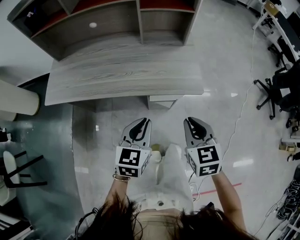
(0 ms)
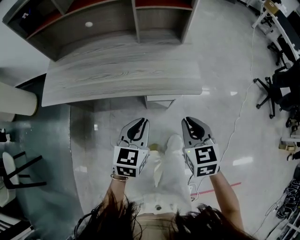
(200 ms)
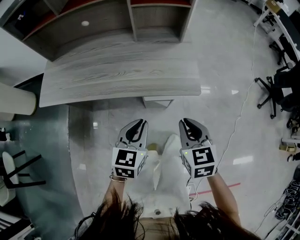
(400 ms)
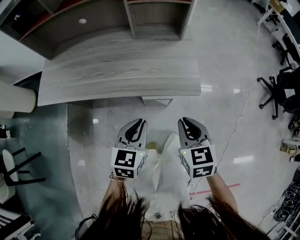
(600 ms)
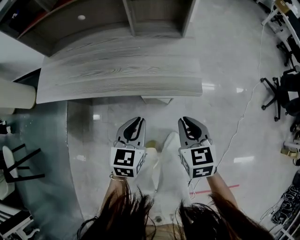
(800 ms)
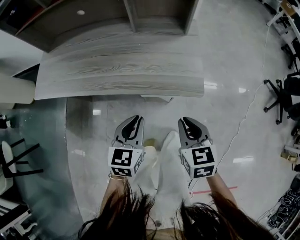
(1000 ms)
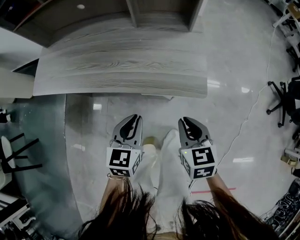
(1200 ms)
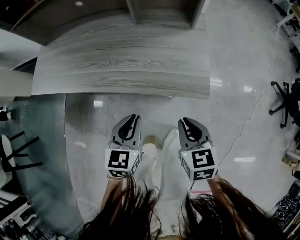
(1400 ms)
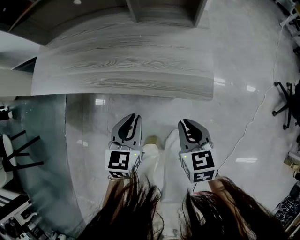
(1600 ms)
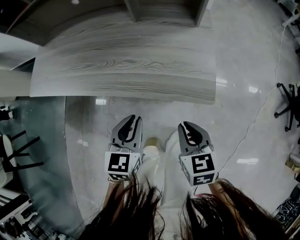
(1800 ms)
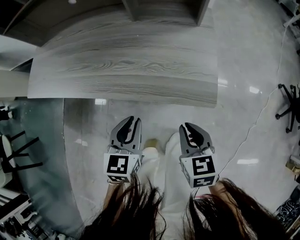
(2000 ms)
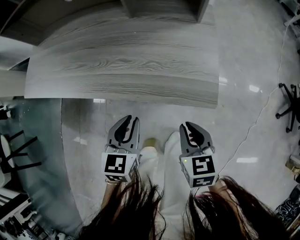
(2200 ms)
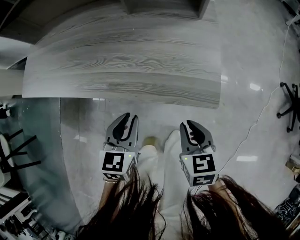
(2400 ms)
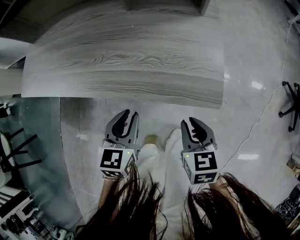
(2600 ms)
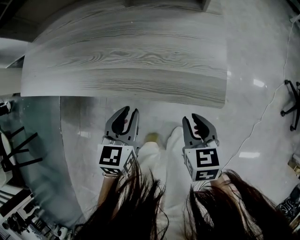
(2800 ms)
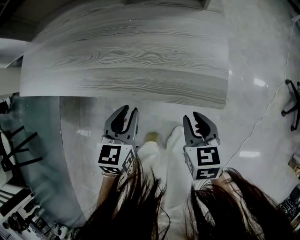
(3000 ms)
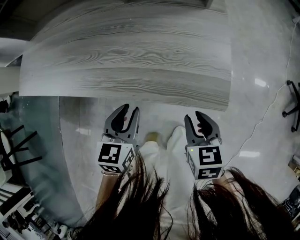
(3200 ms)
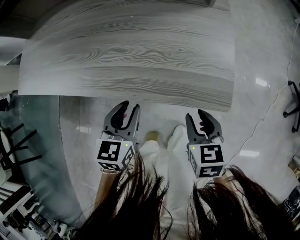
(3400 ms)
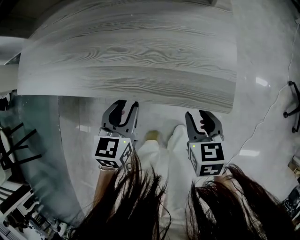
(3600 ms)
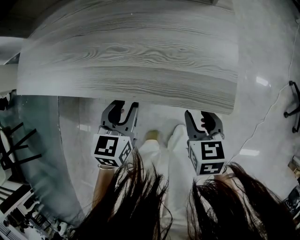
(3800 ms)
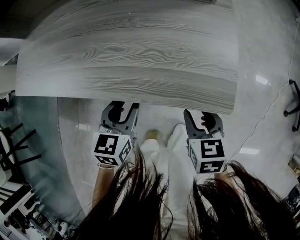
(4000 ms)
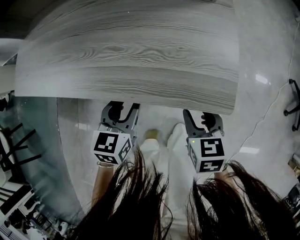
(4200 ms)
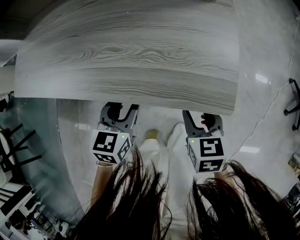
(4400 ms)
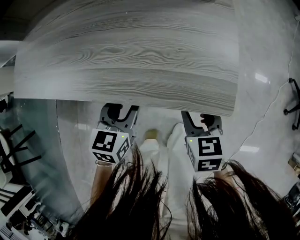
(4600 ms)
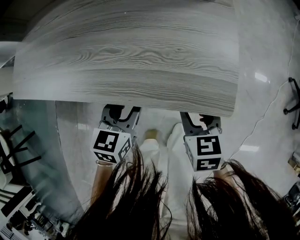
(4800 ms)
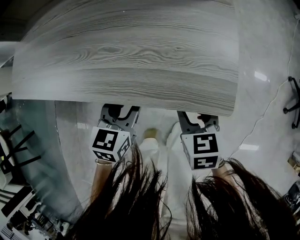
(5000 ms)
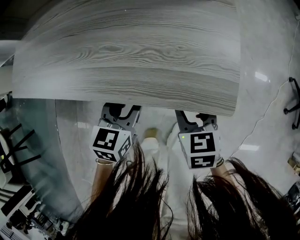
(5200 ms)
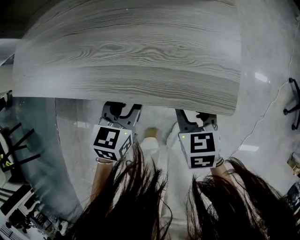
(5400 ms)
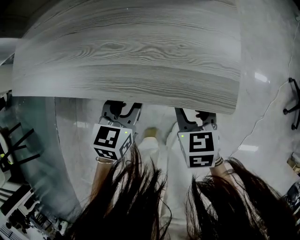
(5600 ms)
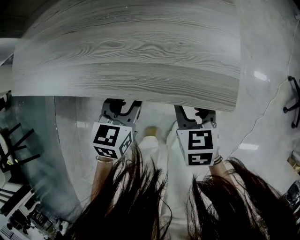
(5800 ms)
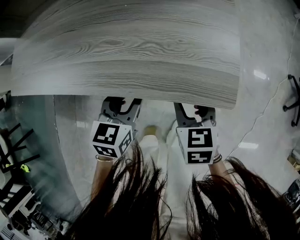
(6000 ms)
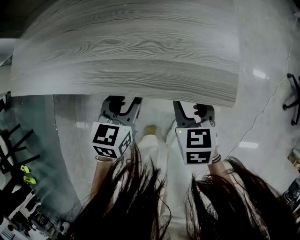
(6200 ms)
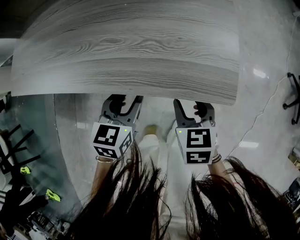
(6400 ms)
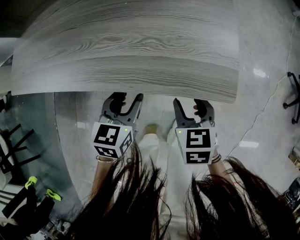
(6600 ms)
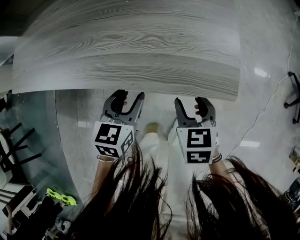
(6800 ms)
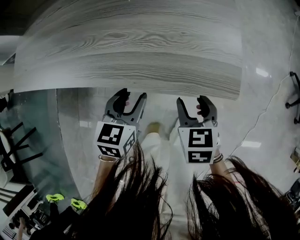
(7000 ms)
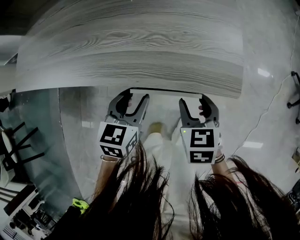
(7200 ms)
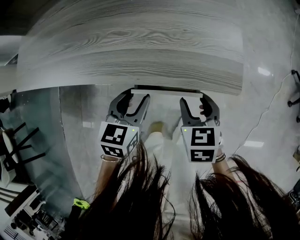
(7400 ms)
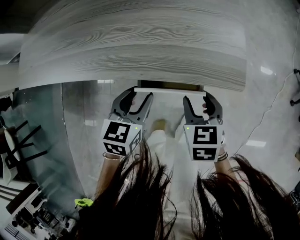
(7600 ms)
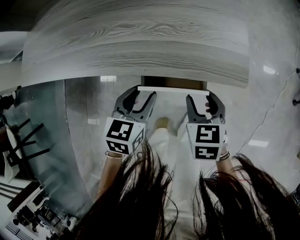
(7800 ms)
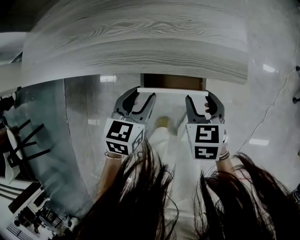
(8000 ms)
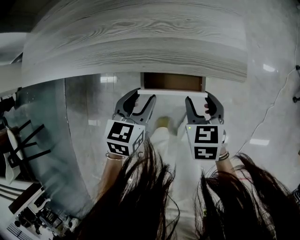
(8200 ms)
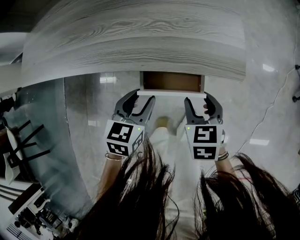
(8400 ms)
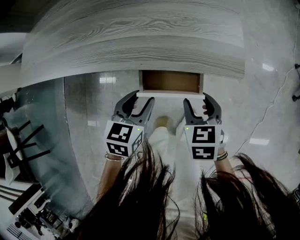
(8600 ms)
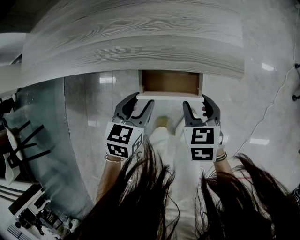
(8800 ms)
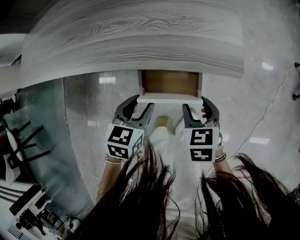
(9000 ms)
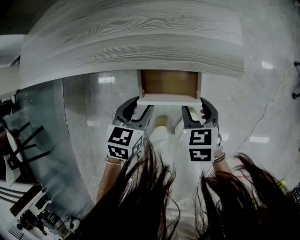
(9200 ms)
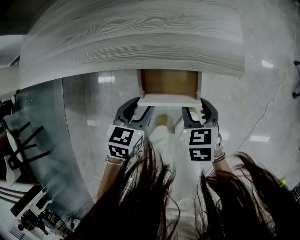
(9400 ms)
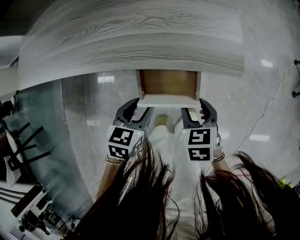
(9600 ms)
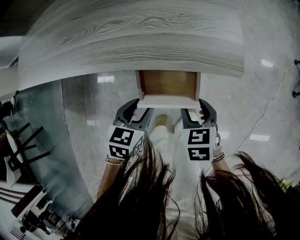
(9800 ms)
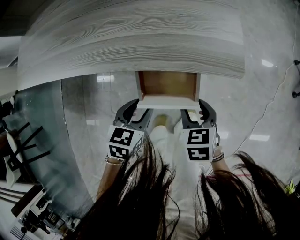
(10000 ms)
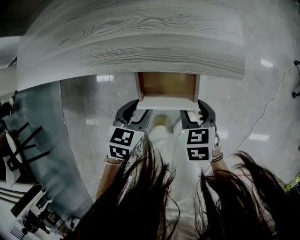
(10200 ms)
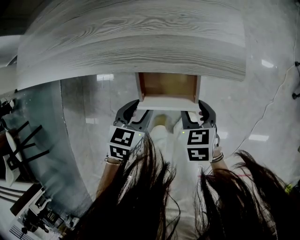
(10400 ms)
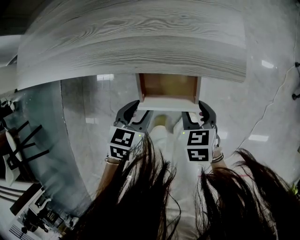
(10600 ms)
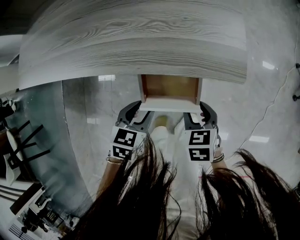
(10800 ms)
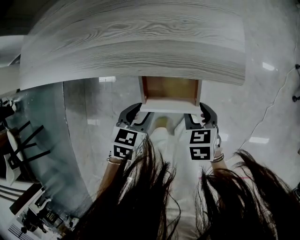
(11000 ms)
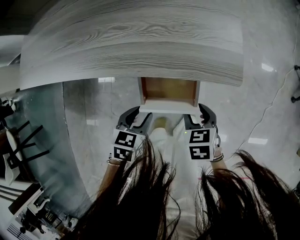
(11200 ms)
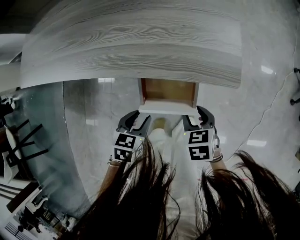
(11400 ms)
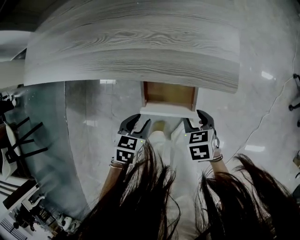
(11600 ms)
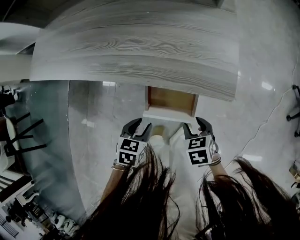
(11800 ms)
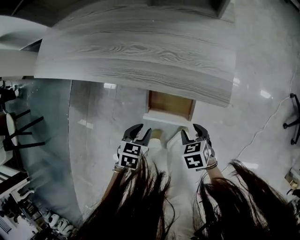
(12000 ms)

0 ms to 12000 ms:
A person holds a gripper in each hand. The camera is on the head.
0 ms to 1600 ms: Both grippers travel together downward and forward, approximately 15 cm.
1600 ms to 3000 ms: Both grippers move downward, some 10 cm.
3000 ms to 4400 ms: The left gripper changes place by roughly 5 cm. The right gripper opens its fingers.
4400 ms to 7600 ms: The grippers make only small movements.
7600 ms to 9000 ms: Both grippers move backward, some 5 cm.
9000 ms to 10400 ms: The grippers stay close to where they were, moving slightly.
10400 ms to 12000 ms: The grippers move only a little.

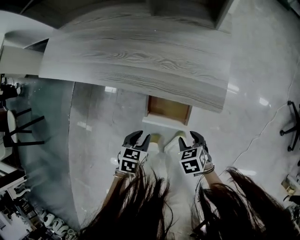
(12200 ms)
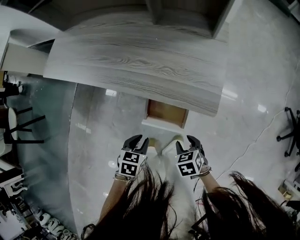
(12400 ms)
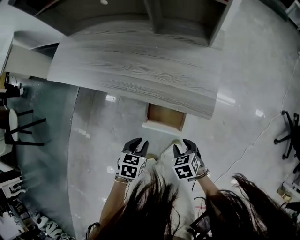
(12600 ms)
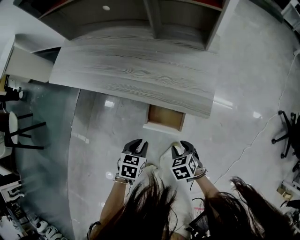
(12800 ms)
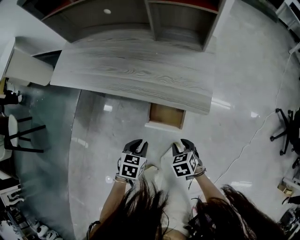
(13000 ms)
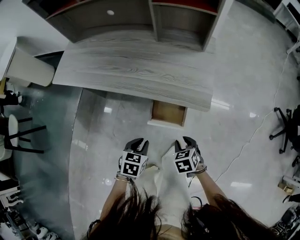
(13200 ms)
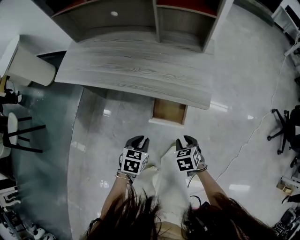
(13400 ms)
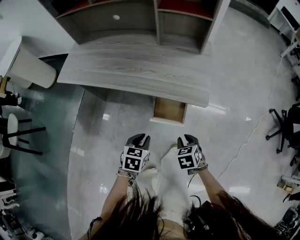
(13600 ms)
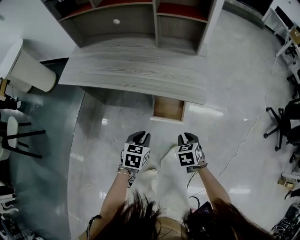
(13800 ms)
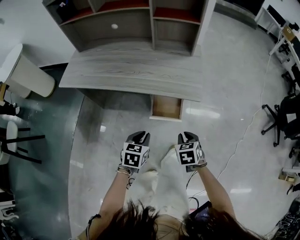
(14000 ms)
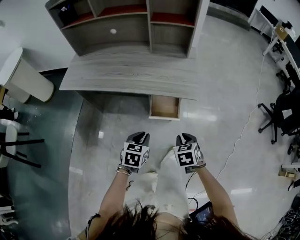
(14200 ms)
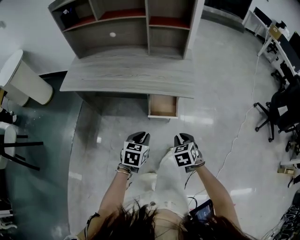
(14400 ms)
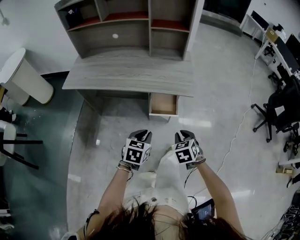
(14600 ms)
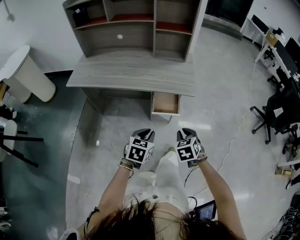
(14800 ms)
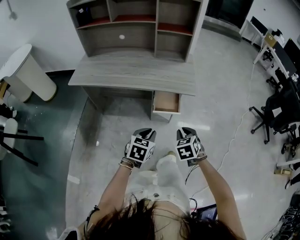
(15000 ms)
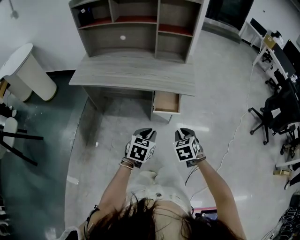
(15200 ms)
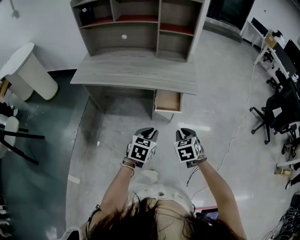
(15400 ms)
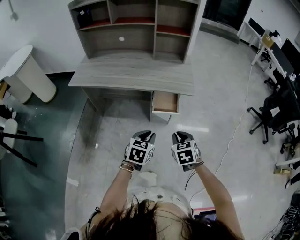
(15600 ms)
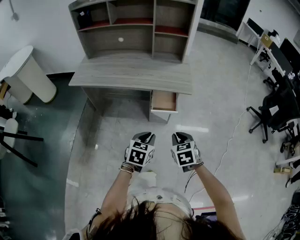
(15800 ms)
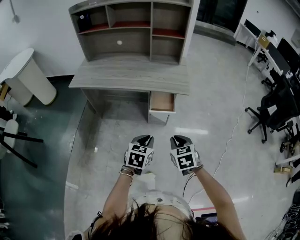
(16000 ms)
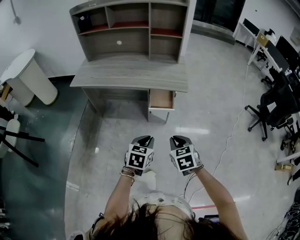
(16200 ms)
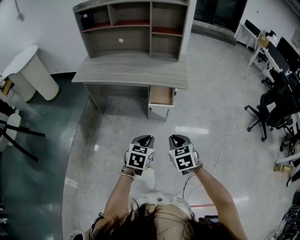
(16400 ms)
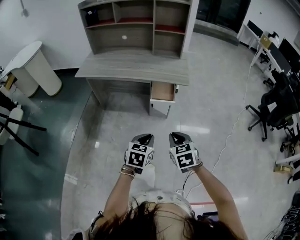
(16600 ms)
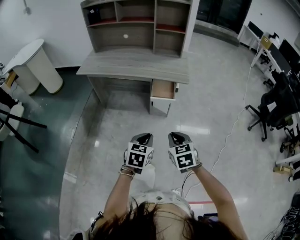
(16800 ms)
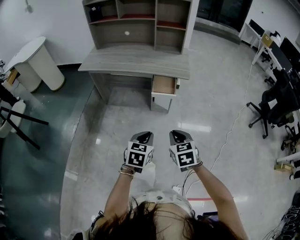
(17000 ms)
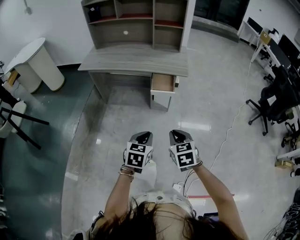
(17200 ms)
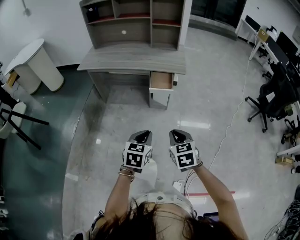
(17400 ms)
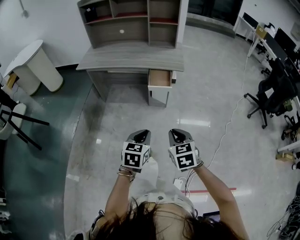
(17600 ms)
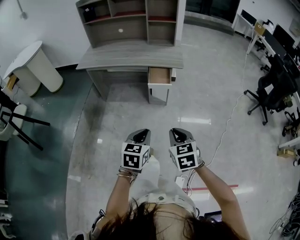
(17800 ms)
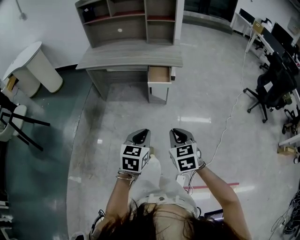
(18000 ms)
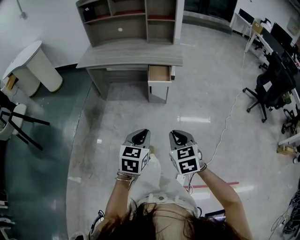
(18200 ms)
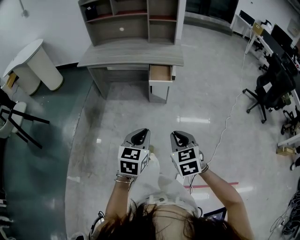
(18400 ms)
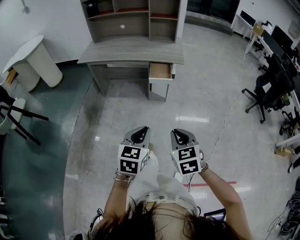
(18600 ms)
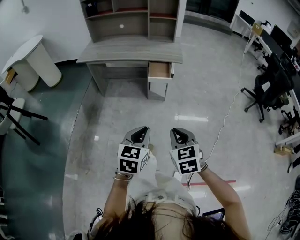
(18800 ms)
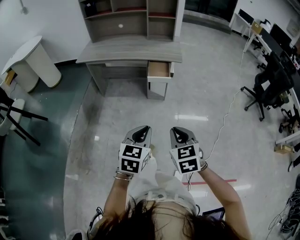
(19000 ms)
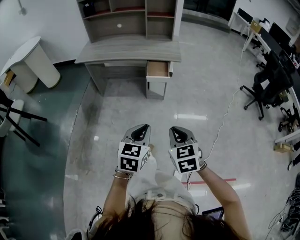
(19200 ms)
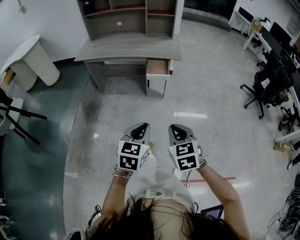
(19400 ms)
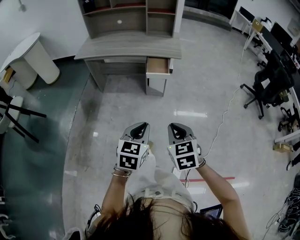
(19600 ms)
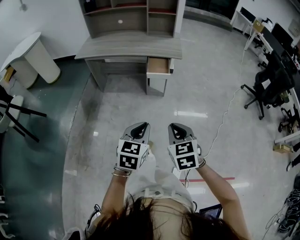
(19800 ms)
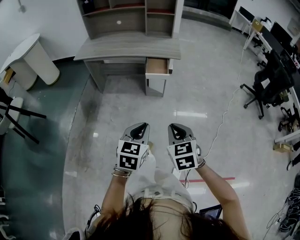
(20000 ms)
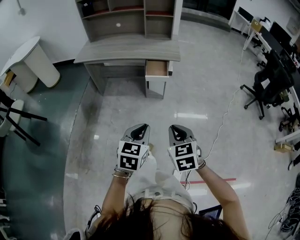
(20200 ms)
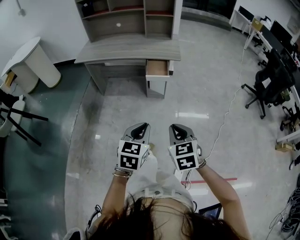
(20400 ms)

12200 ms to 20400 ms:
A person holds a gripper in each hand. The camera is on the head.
12200 ms to 13800 ms: Both grippers move upward, roughly 15 cm. The right gripper closes.
13800 ms to 15400 ms: The two grippers go about 15 cm backward and upward.
15400 ms to 17200 ms: Both grippers travel together backward, roughly 20 cm.
17200 ms to 18800 ms: The left gripper is displaced backward and upward by roughly 15 cm. Meanwhile the right gripper is displaced backward by some 15 cm.
18800 ms to 20400 ms: The grippers move only a little.

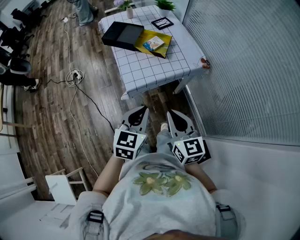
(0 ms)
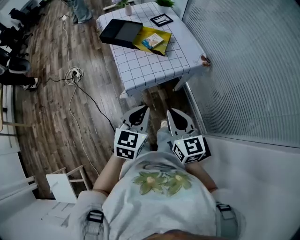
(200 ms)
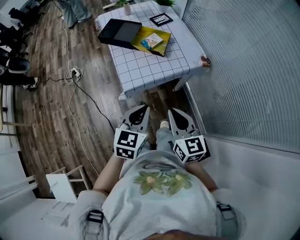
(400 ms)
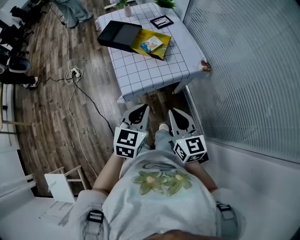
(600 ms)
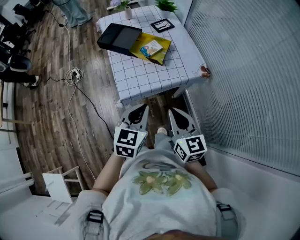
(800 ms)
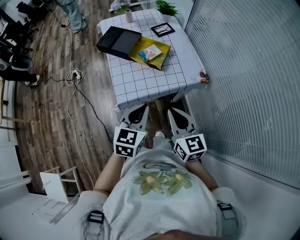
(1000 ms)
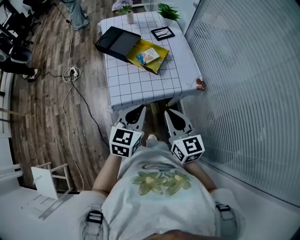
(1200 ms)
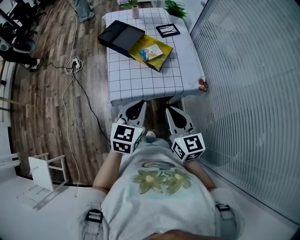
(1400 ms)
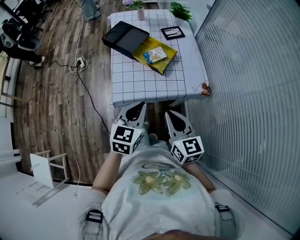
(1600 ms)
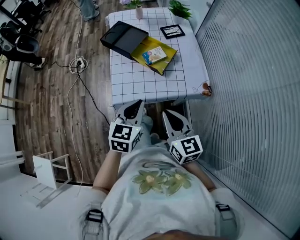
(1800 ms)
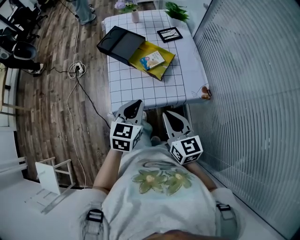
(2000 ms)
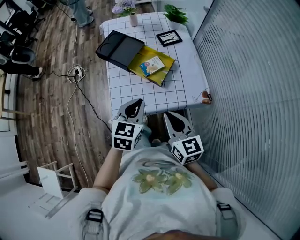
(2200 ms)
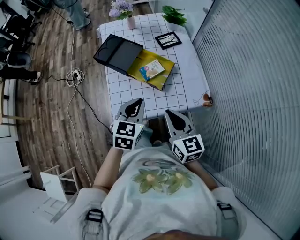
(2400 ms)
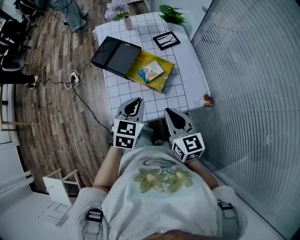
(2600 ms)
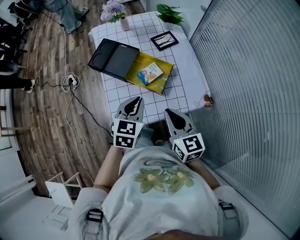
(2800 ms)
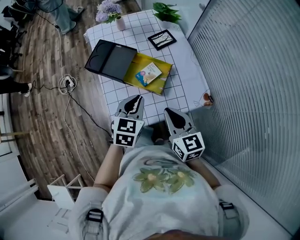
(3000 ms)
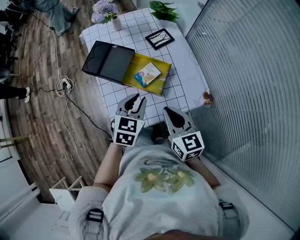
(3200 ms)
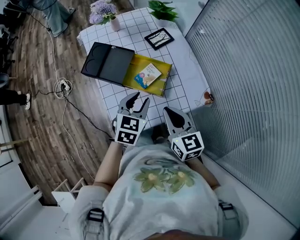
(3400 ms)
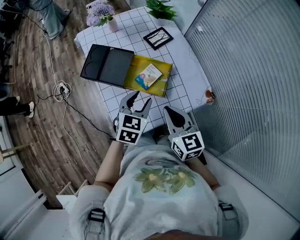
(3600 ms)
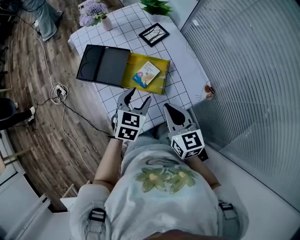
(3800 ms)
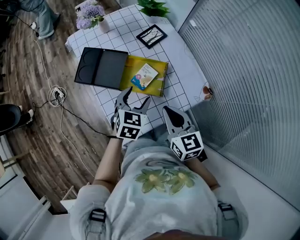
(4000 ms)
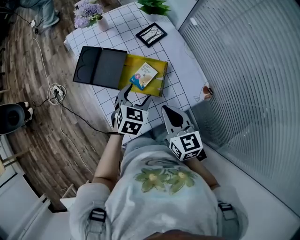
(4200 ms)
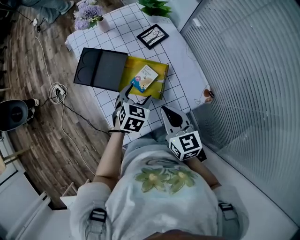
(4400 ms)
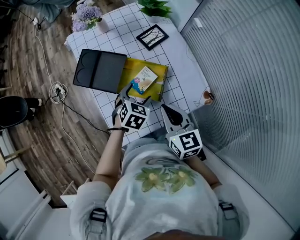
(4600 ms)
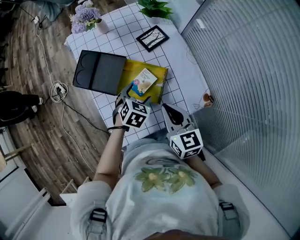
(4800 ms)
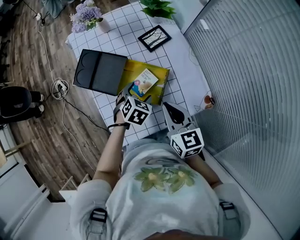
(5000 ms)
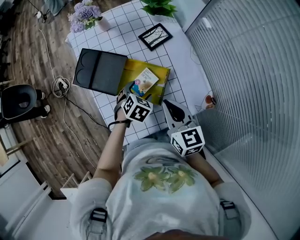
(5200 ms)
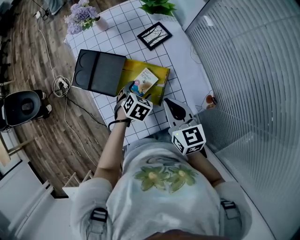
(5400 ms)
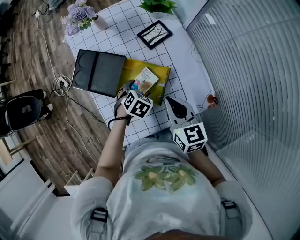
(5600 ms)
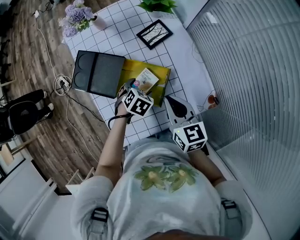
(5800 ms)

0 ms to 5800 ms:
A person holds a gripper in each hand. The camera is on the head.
0 ms to 1400 ms: Both grippers move forward and to the right, roughly 20 cm.
1400 ms to 2800 ms: The two grippers go some 20 cm forward.
2800 ms to 4400 ms: The left gripper is displaced forward and downward by about 15 cm, turns by roughly 20 degrees, and opens its fingers. The right gripper goes roughly 10 cm forward.
4400 ms to 5800 ms: The right gripper travels forward by some 10 cm. The left gripper heads downward and forward, covering roughly 10 cm, and turns by approximately 20 degrees.
